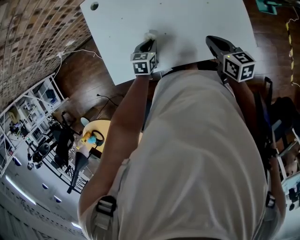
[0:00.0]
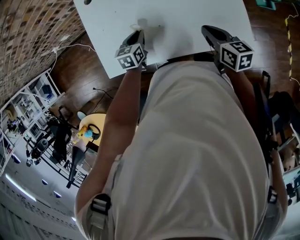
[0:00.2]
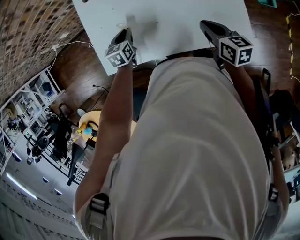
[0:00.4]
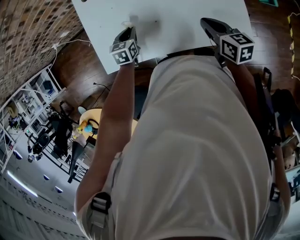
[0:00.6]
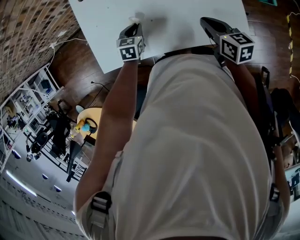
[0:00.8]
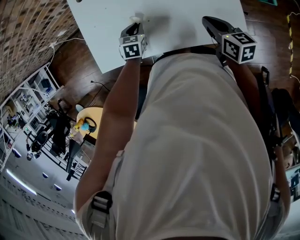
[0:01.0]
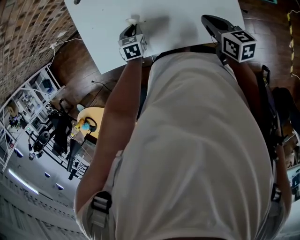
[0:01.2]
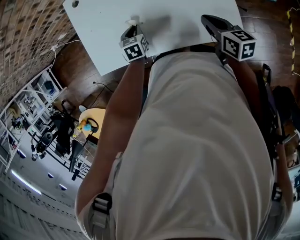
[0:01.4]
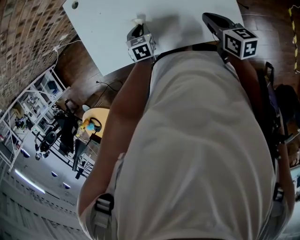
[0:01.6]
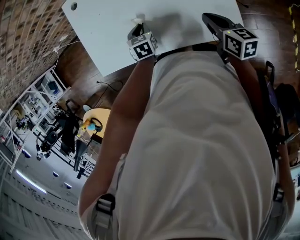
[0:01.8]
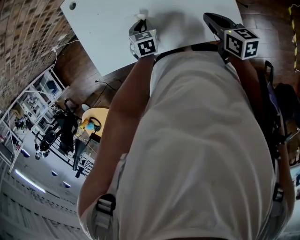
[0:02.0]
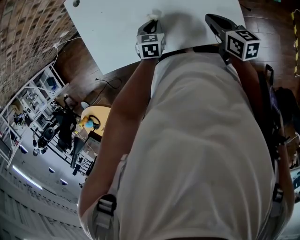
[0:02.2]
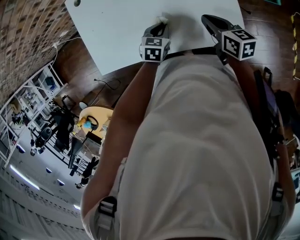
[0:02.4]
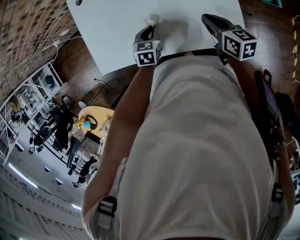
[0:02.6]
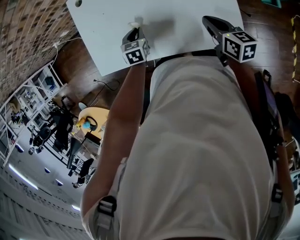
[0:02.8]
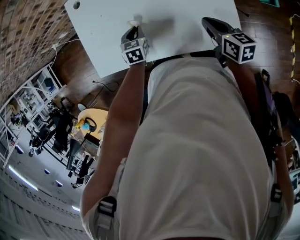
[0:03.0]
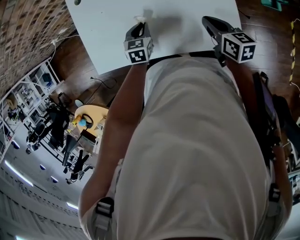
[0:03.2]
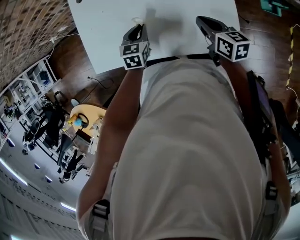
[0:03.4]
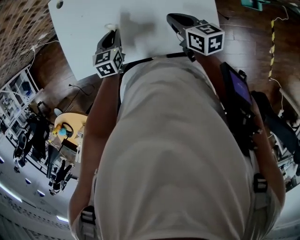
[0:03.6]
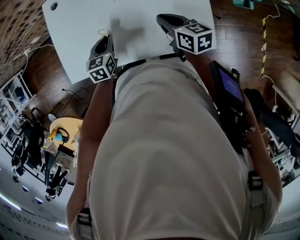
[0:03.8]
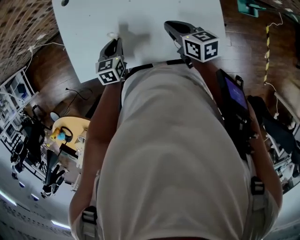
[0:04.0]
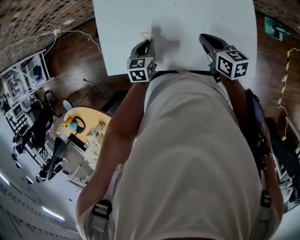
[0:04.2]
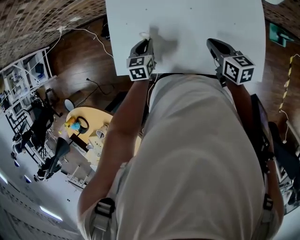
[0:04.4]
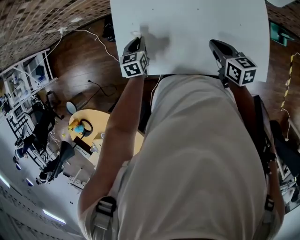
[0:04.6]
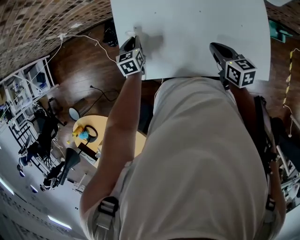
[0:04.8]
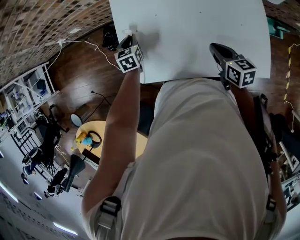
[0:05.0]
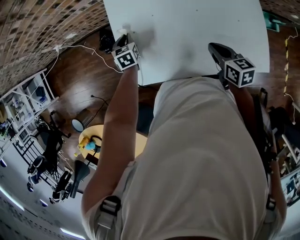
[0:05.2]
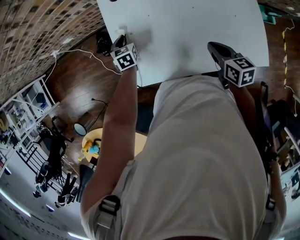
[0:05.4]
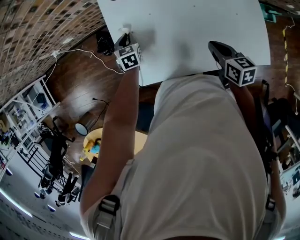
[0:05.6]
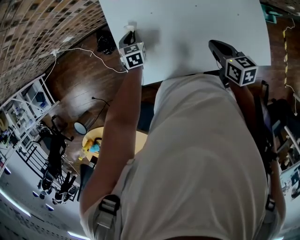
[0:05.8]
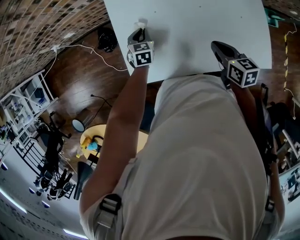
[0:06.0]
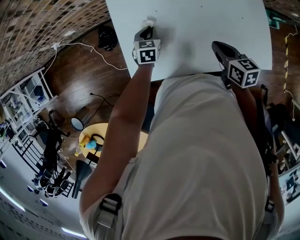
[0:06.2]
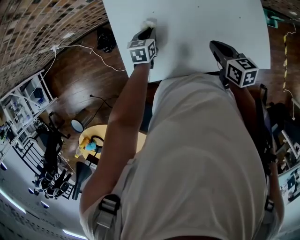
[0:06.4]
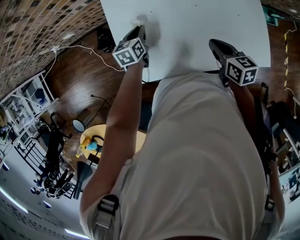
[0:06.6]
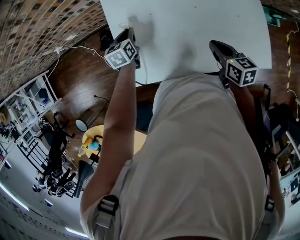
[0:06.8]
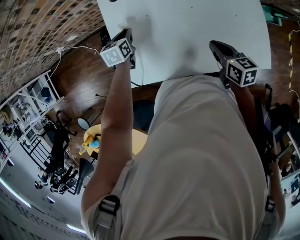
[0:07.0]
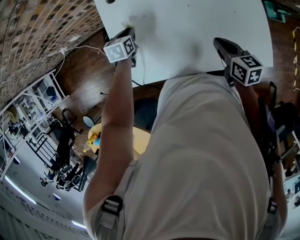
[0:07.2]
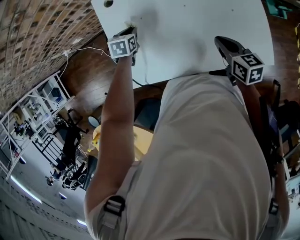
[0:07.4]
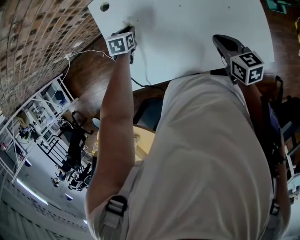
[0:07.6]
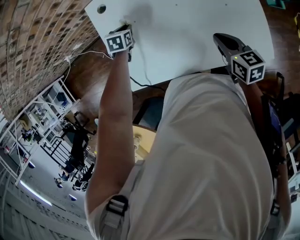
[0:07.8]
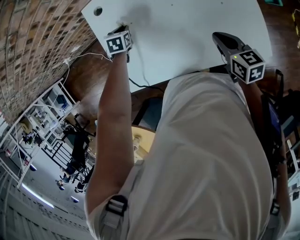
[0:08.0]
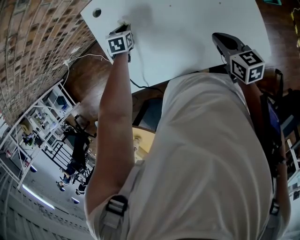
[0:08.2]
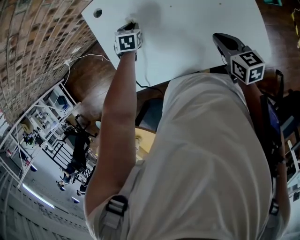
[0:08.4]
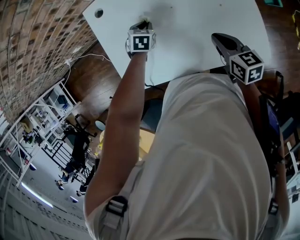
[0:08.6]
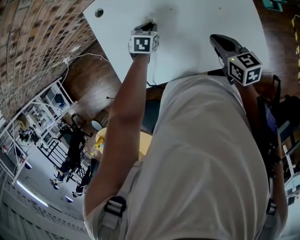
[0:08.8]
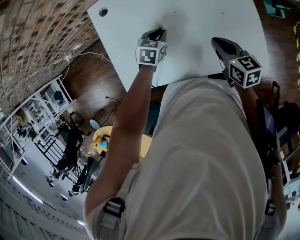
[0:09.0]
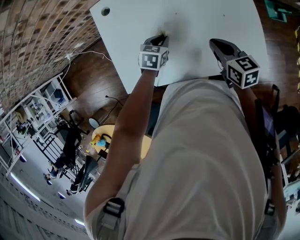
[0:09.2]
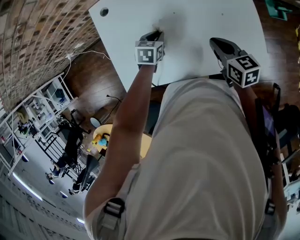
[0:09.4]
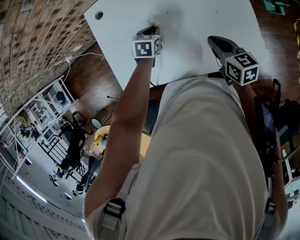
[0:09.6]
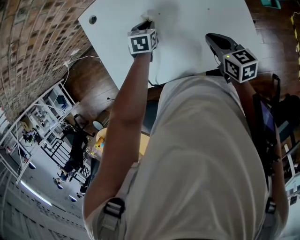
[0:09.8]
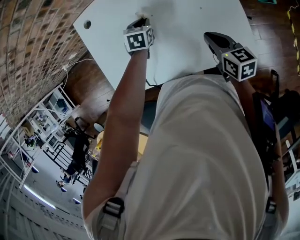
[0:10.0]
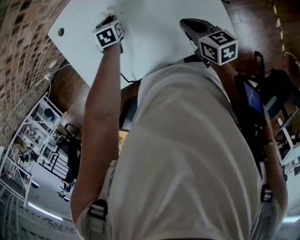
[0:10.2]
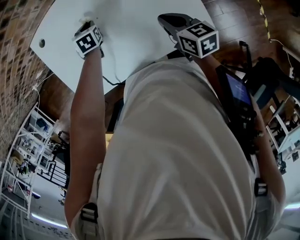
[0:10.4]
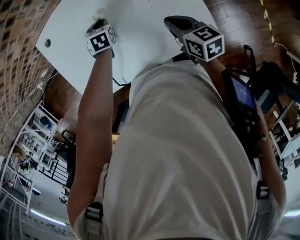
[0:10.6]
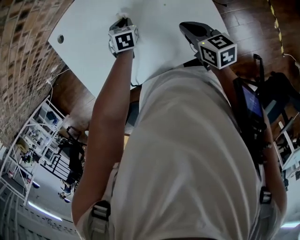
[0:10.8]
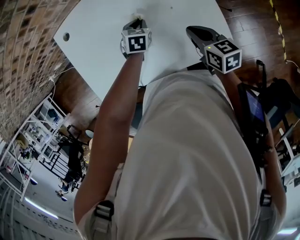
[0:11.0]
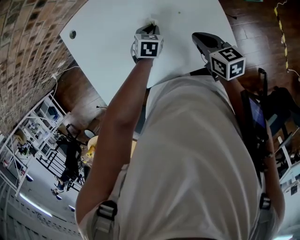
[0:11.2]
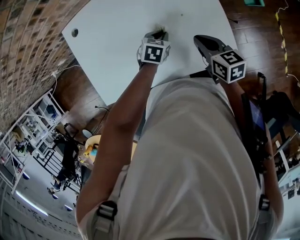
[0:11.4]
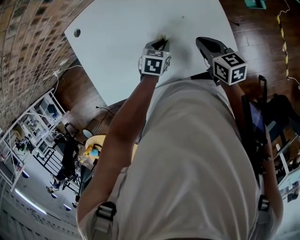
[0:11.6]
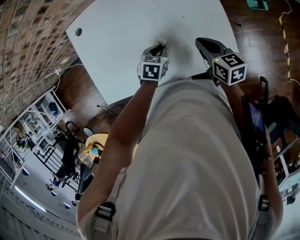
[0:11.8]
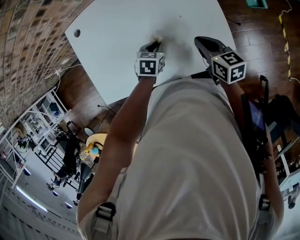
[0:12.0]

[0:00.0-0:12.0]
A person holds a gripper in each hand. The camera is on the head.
0:00.0 to 0:01.6: The left gripper goes some 5 cm to the right. The right gripper moves to the right, roughly 10 cm.
0:01.6 to 0:03.0: The left gripper goes to the right and returns, some 10 cm each way.
0:03.0 to 0:04.4: The two grippers go some 15 cm to the left.
0:04.4 to 0:06.0: The left gripper moves forward, about 10 cm, while the right gripper moves to the left, some 5 cm.
0:06.0 to 0:07.6: The left gripper swings left and right, approximately 5 cm each way, with 2 reversals; the right gripper moves to the right, about 10 cm.
0:07.6 to 0:09.0: The left gripper travels to the right and backward by some 20 cm.
0:09.0 to 0:10.4: The left gripper heads forward, covering some 10 cm. Meanwhile the right gripper shifts roughly 10 cm to the right.
0:10.4 to 0:12.0: The left gripper shifts about 20 cm backward and to the right.

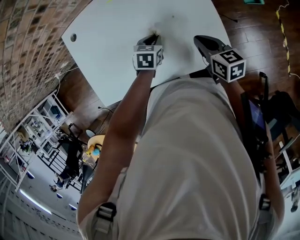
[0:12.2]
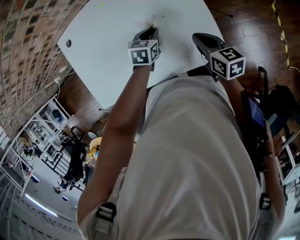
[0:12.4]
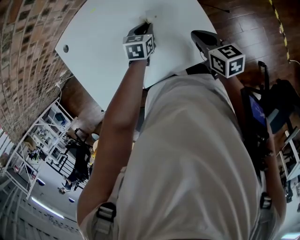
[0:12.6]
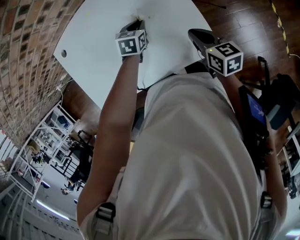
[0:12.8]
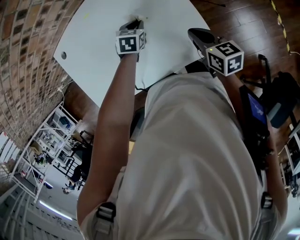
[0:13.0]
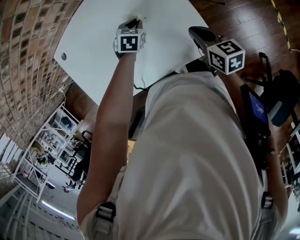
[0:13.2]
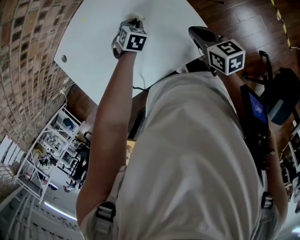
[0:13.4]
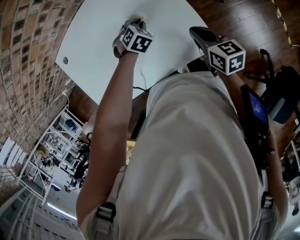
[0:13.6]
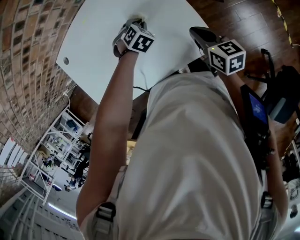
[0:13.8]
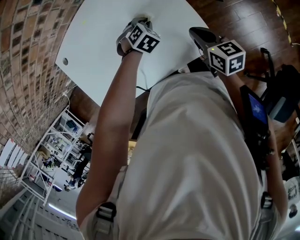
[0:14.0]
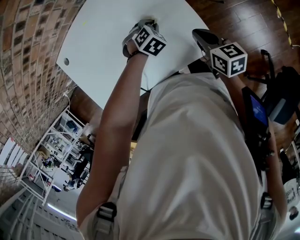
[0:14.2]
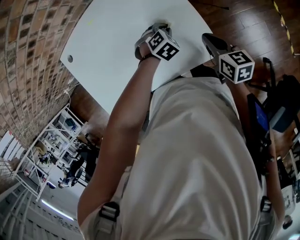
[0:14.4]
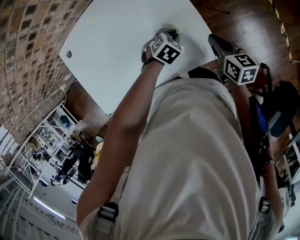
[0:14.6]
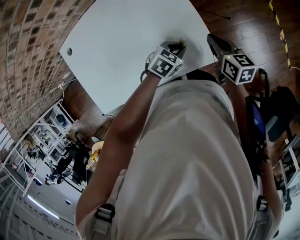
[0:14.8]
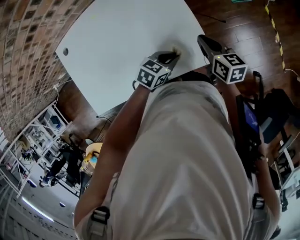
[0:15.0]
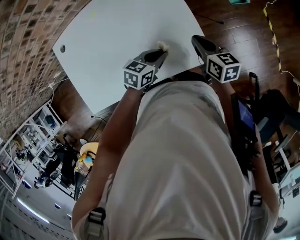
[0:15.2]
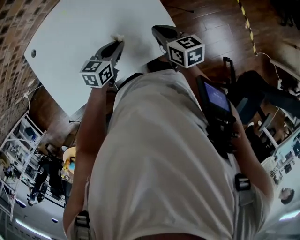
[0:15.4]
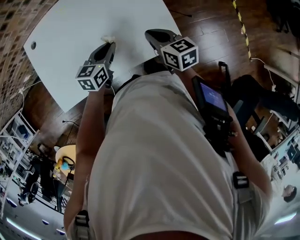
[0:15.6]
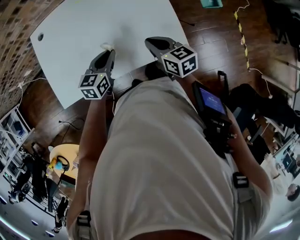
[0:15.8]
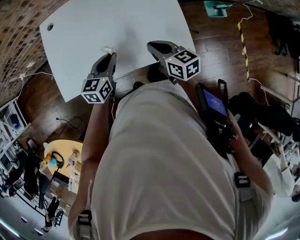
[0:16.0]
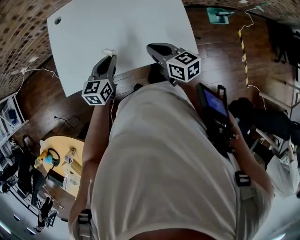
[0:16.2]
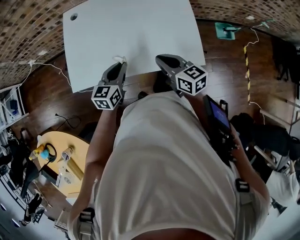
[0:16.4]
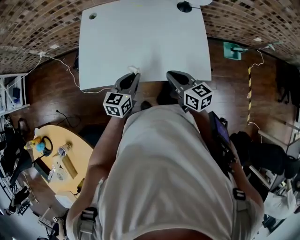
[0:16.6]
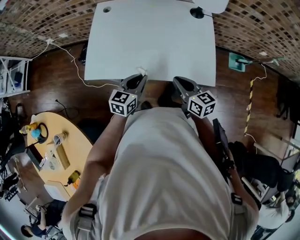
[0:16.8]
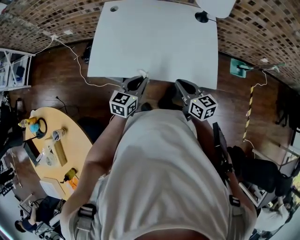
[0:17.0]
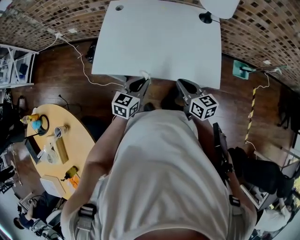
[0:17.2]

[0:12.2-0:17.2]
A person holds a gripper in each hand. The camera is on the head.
0:12.2 to 0:13.8: The left gripper heads to the right and forward, covering approximately 10 cm, and rolls clockwise, seen from behind, by roughly 50 degrees; the right gripper is displaced to the right by roughly 10 cm.
0:13.8 to 0:15.6: The right gripper changes place by about 10 cm, while the left gripper ends up roughly 20 cm from where it was, and tips its fingers upward by about 40 degrees.
0:15.6 to 0:17.2: The grippers both shift to the left and backward by roughly 25 cm. The right gripper swivels about 20 degrees, while the left gripper swivels about 20 degrees.

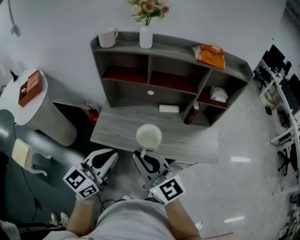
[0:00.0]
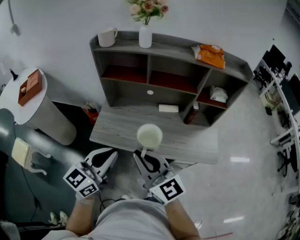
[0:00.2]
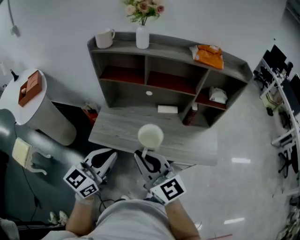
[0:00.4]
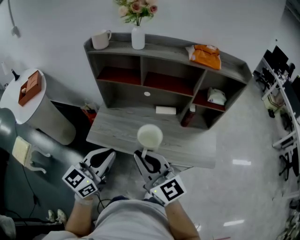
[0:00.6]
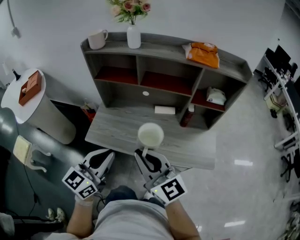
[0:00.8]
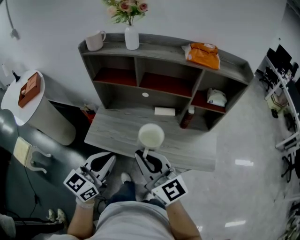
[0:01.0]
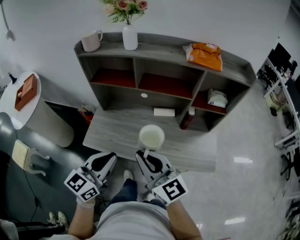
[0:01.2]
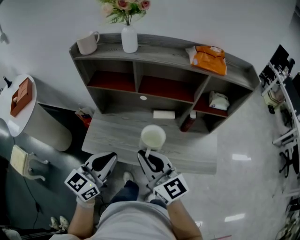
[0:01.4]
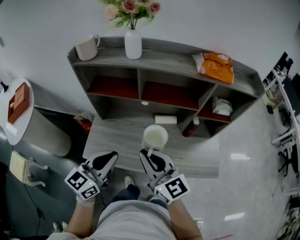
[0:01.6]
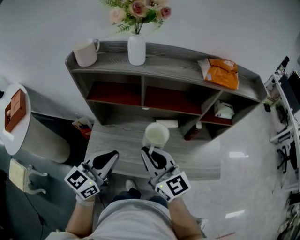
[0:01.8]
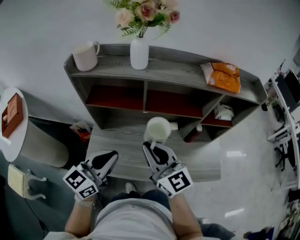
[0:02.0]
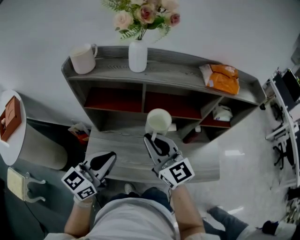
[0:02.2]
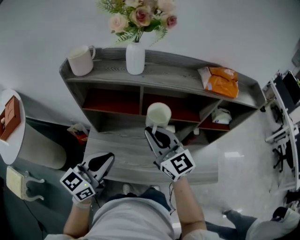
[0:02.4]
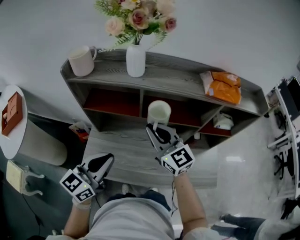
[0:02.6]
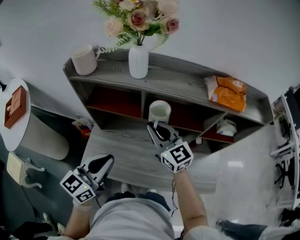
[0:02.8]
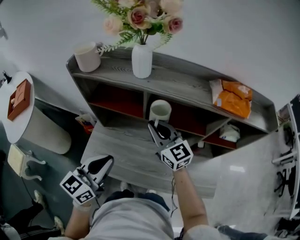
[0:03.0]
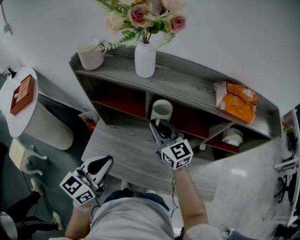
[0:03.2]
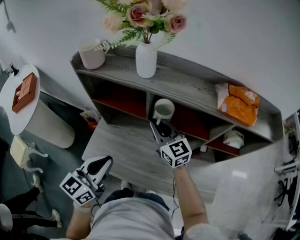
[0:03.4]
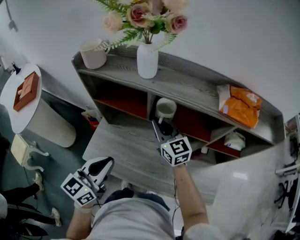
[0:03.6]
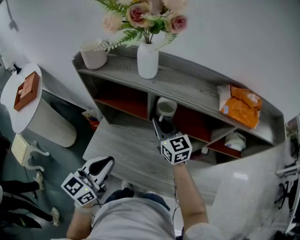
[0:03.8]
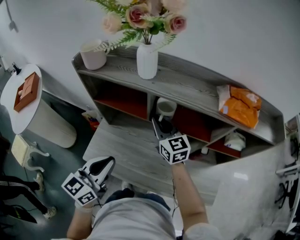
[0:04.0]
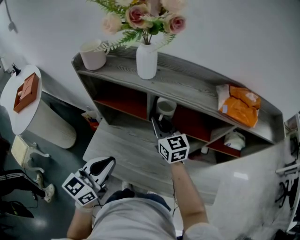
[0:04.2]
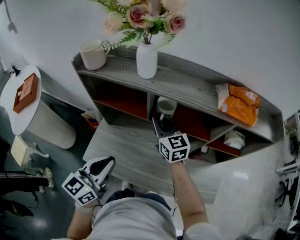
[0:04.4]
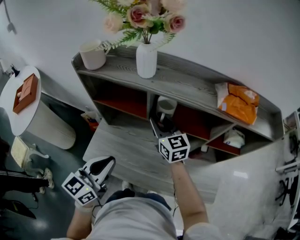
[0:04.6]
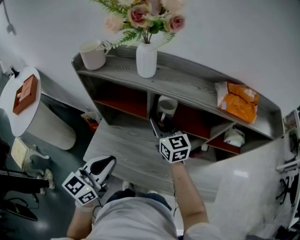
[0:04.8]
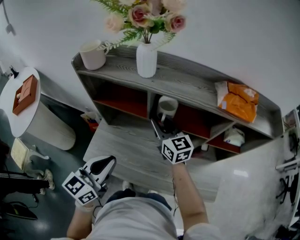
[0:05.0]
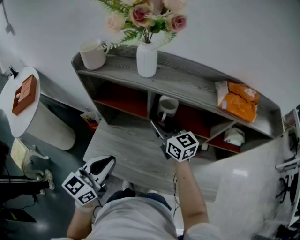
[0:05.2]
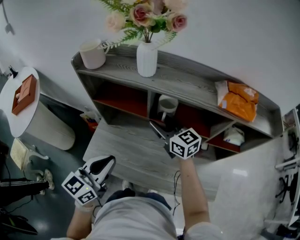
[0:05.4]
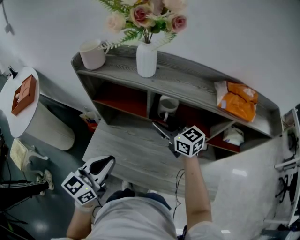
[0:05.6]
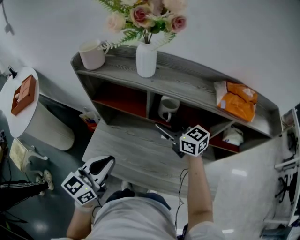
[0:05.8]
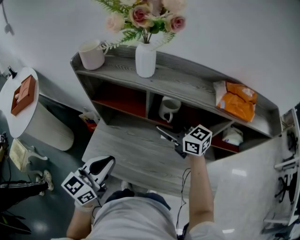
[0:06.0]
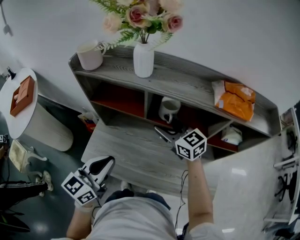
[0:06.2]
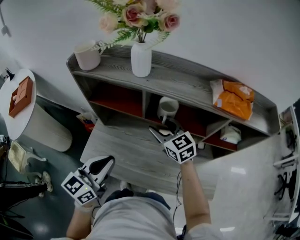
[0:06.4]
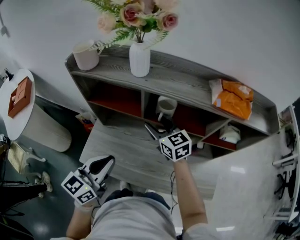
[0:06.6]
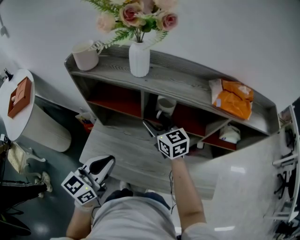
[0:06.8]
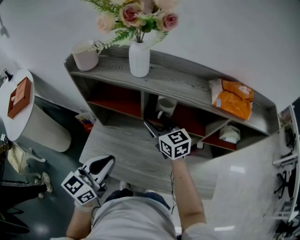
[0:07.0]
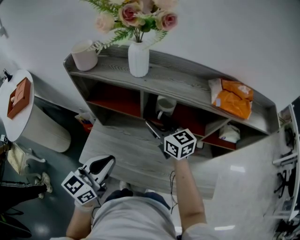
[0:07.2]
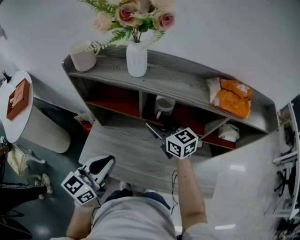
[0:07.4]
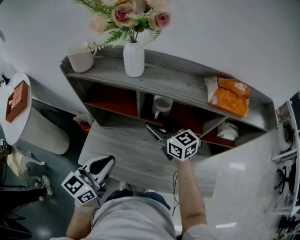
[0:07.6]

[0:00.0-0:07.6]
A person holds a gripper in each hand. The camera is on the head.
0:00.0 to 0:01.6: Both grippers travel together forward, roughly 15 cm.
0:01.6 to 0:03.0: The left gripper is displaced forward by approximately 10 cm; the right gripper goes about 25 cm forward.
0:03.0 to 0:04.6: The right gripper moves roughly 5 cm, and opens its fingers.
0:04.6 to 0:06.0: The right gripper turns by about 30 degrees, and opens up.
